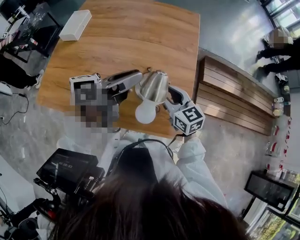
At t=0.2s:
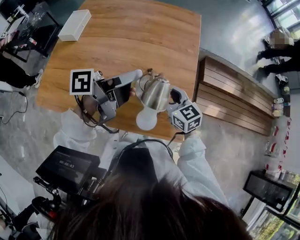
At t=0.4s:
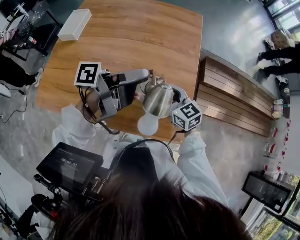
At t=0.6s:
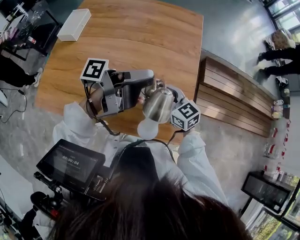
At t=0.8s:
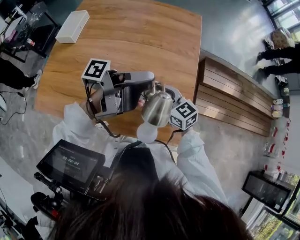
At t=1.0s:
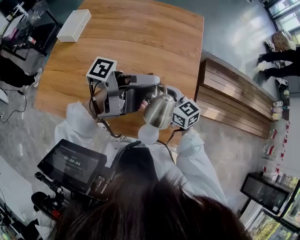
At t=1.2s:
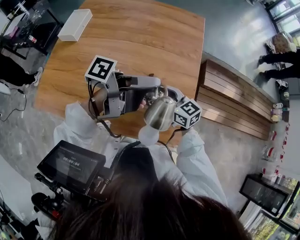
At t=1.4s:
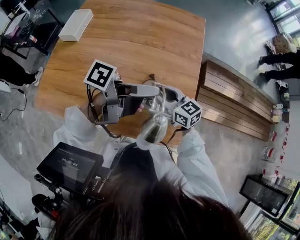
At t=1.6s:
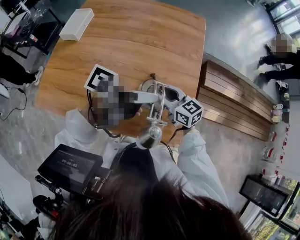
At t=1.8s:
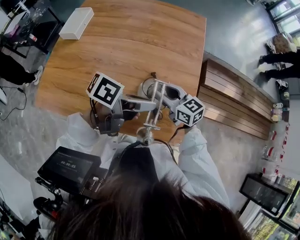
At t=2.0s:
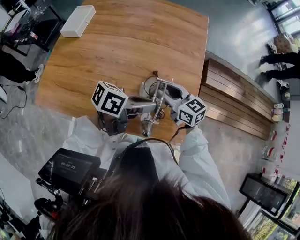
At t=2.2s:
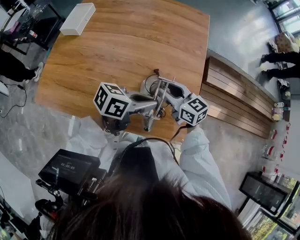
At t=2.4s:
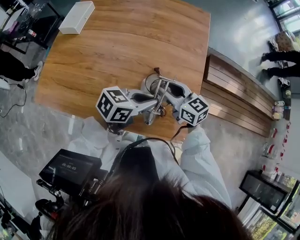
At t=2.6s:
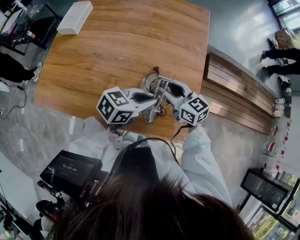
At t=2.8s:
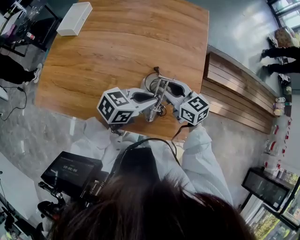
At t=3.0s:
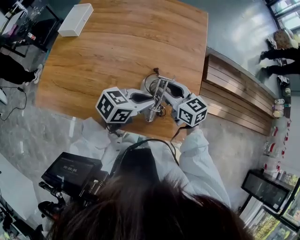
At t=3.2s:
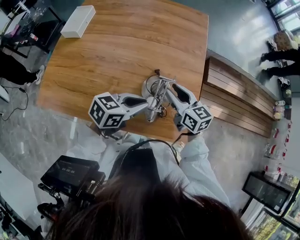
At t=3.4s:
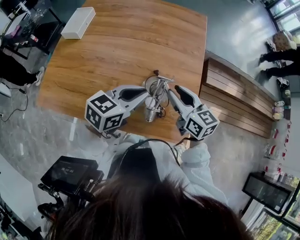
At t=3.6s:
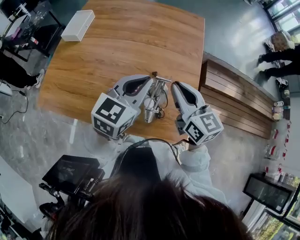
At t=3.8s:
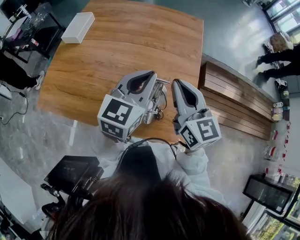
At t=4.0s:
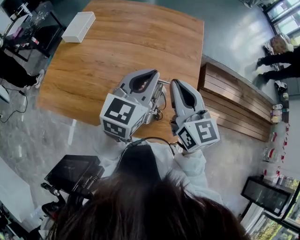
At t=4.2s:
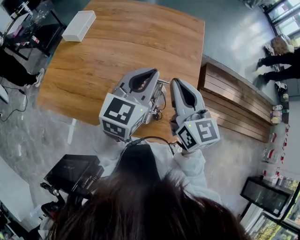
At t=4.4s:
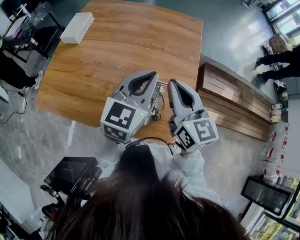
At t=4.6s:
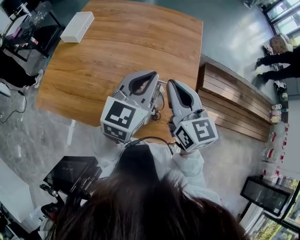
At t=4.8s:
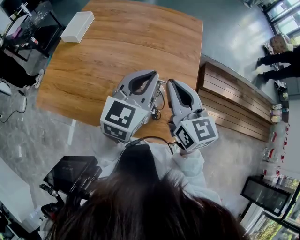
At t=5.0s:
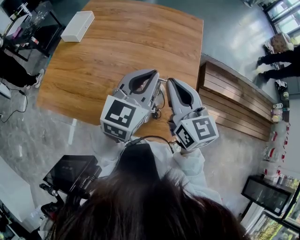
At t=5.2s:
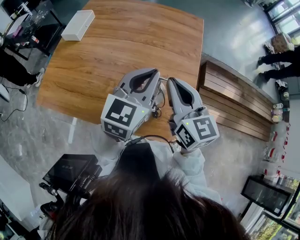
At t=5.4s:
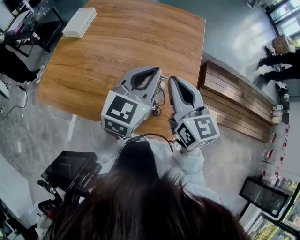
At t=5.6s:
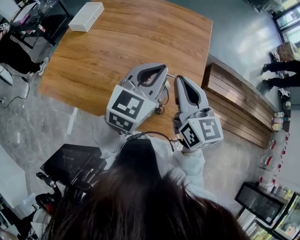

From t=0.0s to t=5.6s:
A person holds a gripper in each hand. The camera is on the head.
From t=0.0s to t=1.4s: The left gripper shifts by roughly 5 cm, and swivels roughly 40 degrees, while the right gripper ends up approximately 5 cm from where it was.
From t=1.4s to t=2.8s: The left gripper shifts approximately 15 cm downward, rolls clockwise, seen from behind, by some 50 degrees, and closes.
From t=2.8s to t=4.2s: The grippers both shift upward by roughly 15 cm. The right gripper swivels some 30 degrees, and closes up, while the left gripper turns by some 40 degrees.
From t=4.2s to t=5.6s: There are only small adjustments of the grippers.

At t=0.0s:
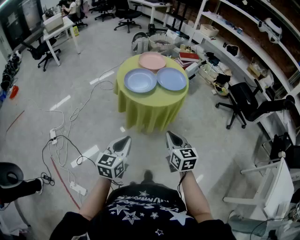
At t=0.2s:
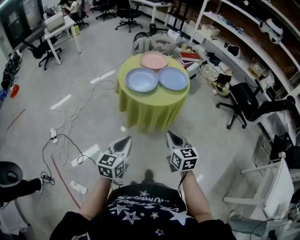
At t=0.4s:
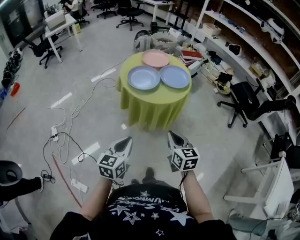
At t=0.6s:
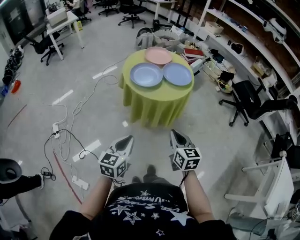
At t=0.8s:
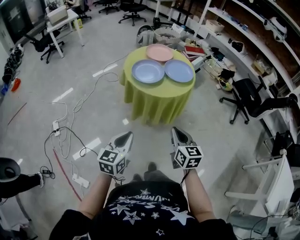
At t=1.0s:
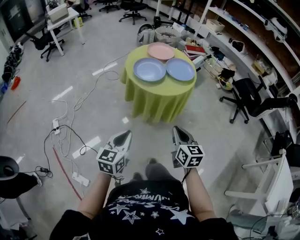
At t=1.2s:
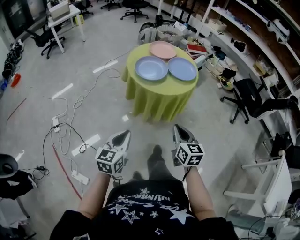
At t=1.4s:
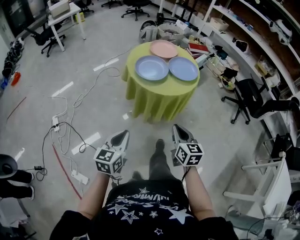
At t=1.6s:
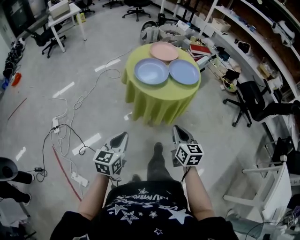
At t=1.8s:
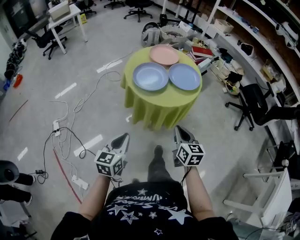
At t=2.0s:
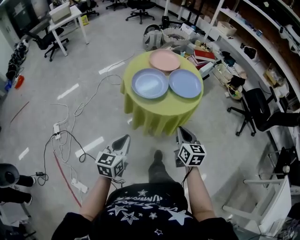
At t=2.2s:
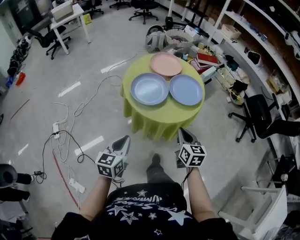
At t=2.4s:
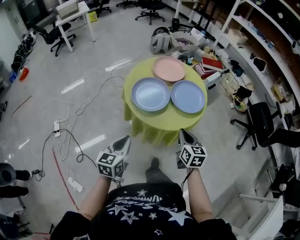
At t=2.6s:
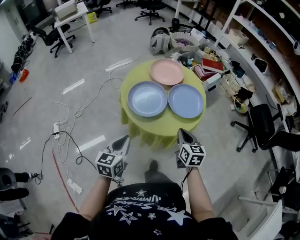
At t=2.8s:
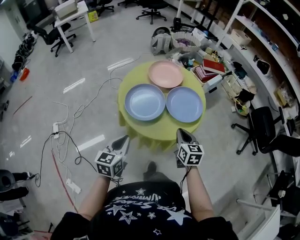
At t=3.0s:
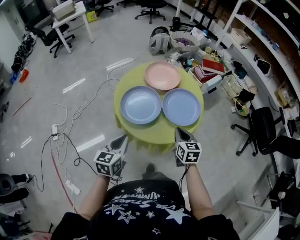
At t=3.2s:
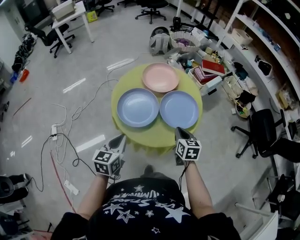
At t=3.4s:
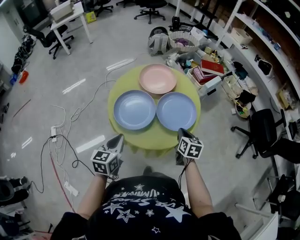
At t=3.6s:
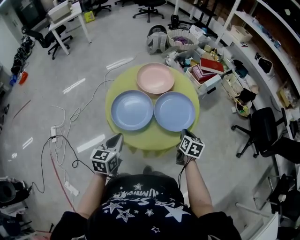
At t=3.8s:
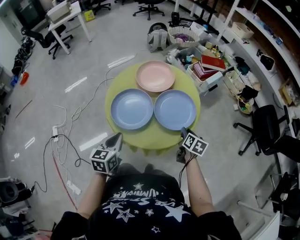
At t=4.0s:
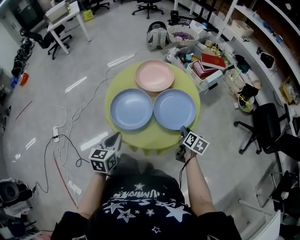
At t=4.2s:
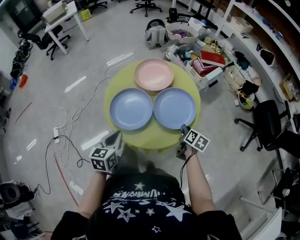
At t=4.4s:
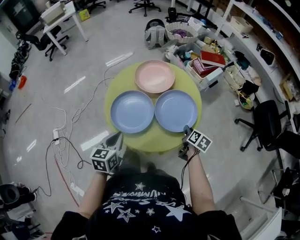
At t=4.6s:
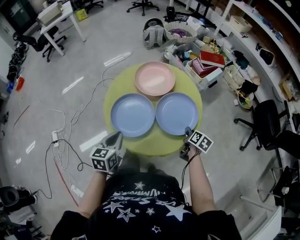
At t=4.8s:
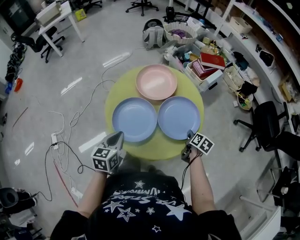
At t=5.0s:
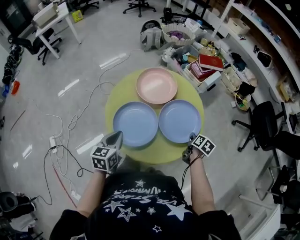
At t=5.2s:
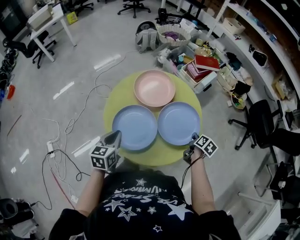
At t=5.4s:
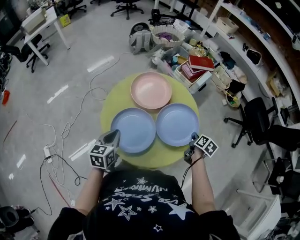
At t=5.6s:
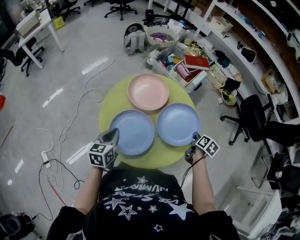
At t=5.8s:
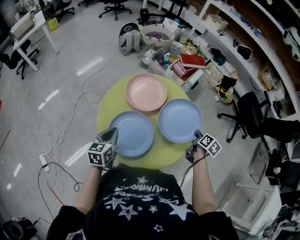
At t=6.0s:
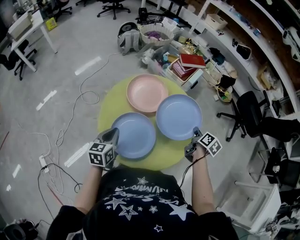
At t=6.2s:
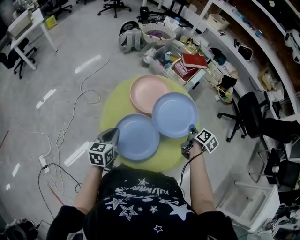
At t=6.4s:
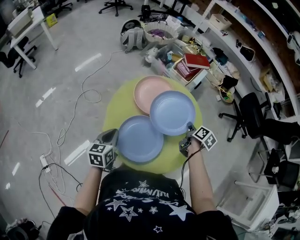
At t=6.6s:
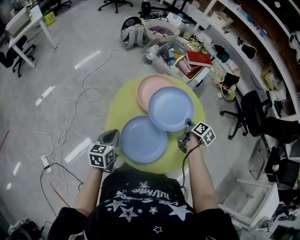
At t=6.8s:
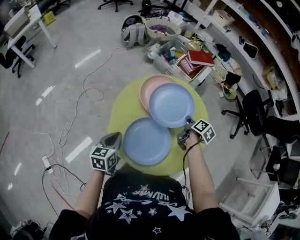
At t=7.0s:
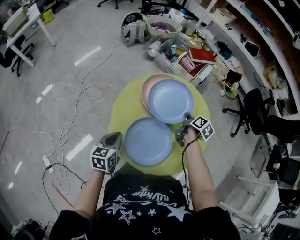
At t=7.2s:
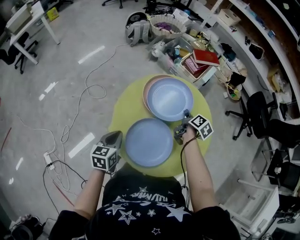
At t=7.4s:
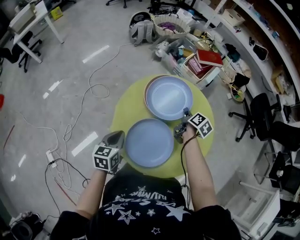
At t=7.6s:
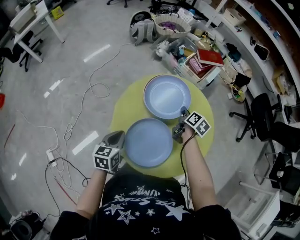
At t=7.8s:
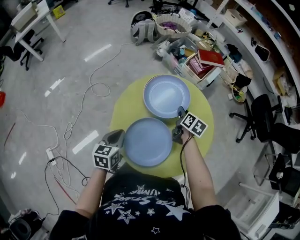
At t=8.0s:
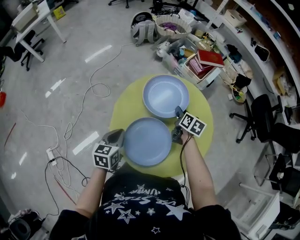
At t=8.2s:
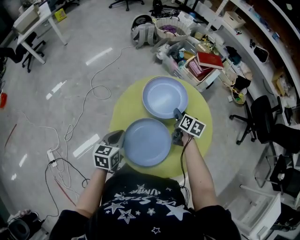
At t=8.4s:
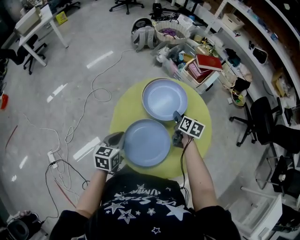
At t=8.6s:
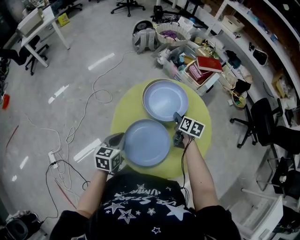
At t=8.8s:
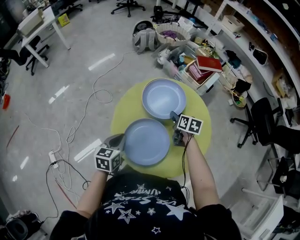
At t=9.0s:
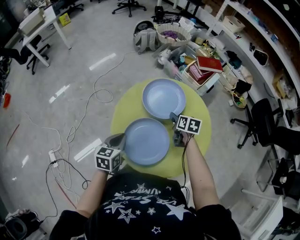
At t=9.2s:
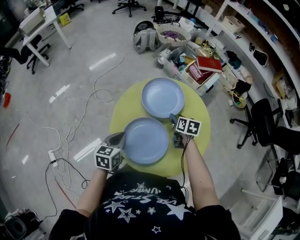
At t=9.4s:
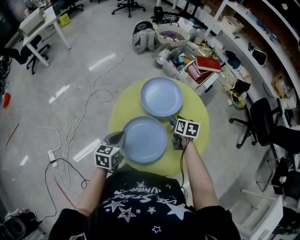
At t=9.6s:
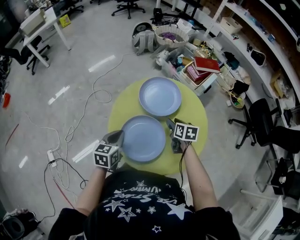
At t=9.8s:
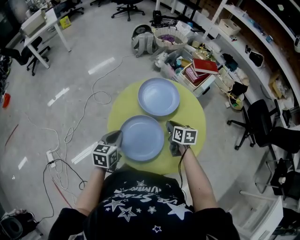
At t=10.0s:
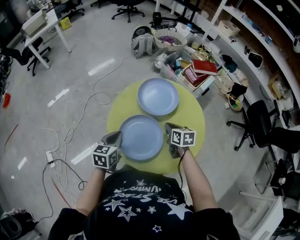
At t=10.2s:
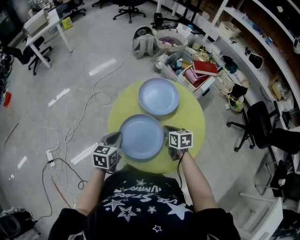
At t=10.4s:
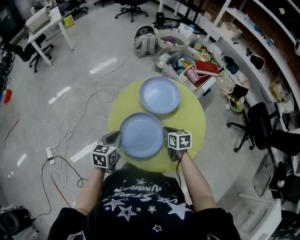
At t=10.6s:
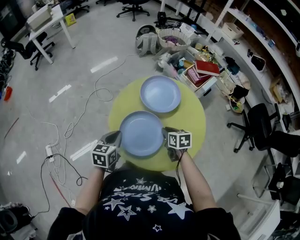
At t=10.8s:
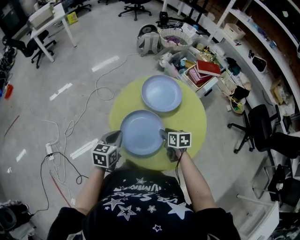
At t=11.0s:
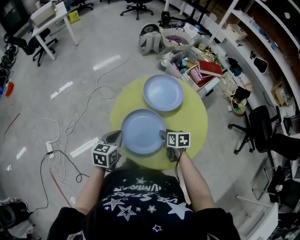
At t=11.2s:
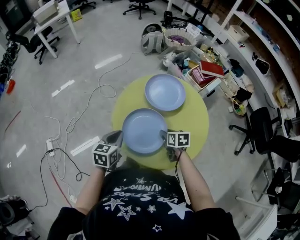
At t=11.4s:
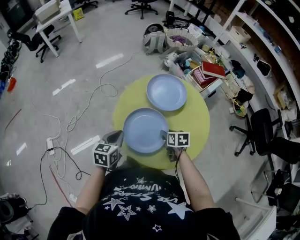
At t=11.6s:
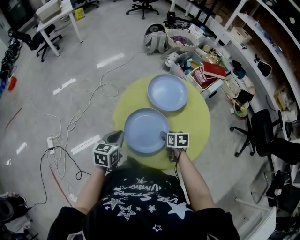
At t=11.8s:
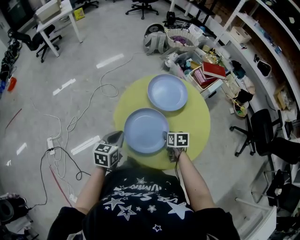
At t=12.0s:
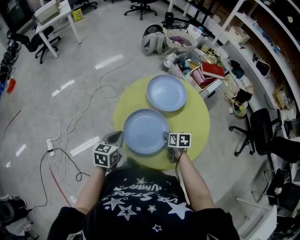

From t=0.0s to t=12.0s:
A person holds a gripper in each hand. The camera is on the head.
From t=0.0s to t=1.6s: The left gripper shifts about 5 cm to the left.
From t=1.6s to t=3.0s: The grippers both shift forward by about 30 cm.
From t=3.0s to t=4.4s: The left gripper travels forward by about 10 cm, while the right gripper travels to the right, downward and forward by some 20 cm, changes its angle by some 40 degrees, and opens.
From t=4.4s to t=6.0s: The left gripper is displaced forward and to the left by about 15 cm. The right gripper shifts some 10 cm upward and forward, swivels some 20 degrees, and closes.
From t=6.0s to t=7.6s: The right gripper goes roughly 20 cm to the left and forward. Meanwhile the left gripper heads to the left, covering about 5 cm.
From t=7.6s to t=9.0s: The right gripper changes its angle by about 30 degrees, and opens its fingers.
From t=9.0s to t=10.4s: The right gripper shifts some 10 cm backward, changes its angle by roughly 20 degrees, and closes its fingers.
From t=10.4s to t=12.0s: The right gripper moves about 5 cm, and opens and closes again.

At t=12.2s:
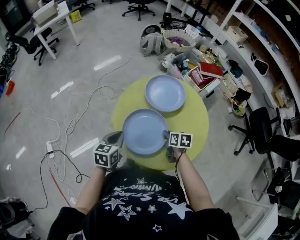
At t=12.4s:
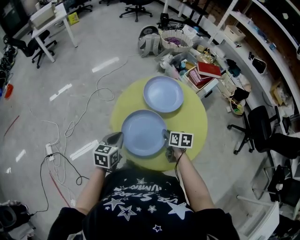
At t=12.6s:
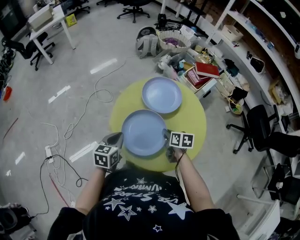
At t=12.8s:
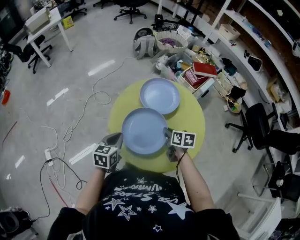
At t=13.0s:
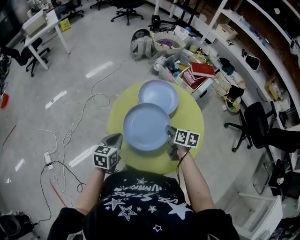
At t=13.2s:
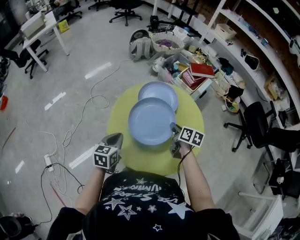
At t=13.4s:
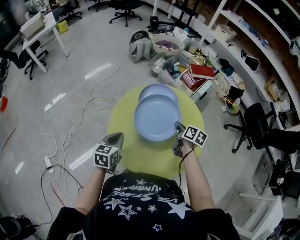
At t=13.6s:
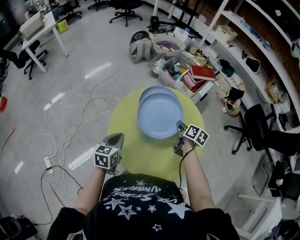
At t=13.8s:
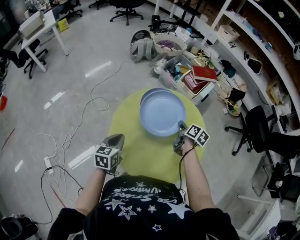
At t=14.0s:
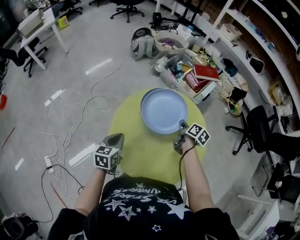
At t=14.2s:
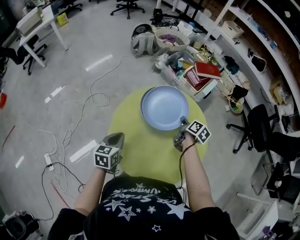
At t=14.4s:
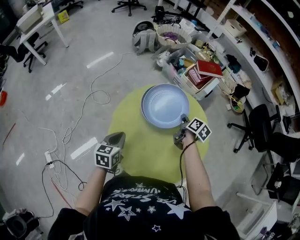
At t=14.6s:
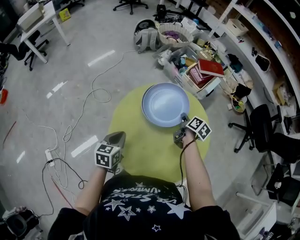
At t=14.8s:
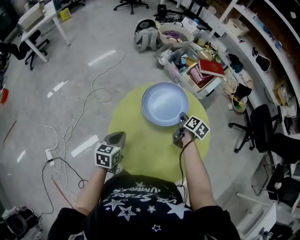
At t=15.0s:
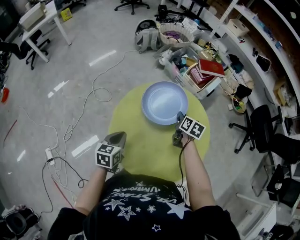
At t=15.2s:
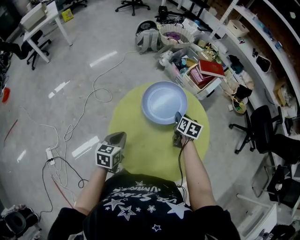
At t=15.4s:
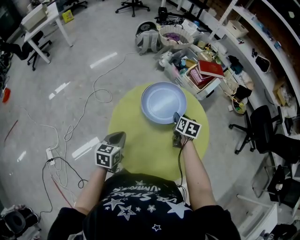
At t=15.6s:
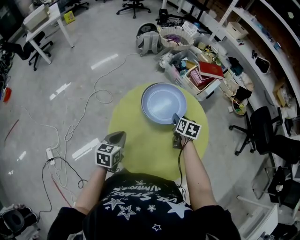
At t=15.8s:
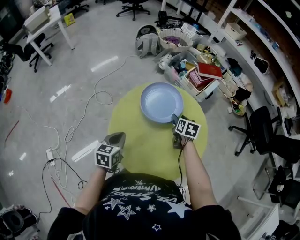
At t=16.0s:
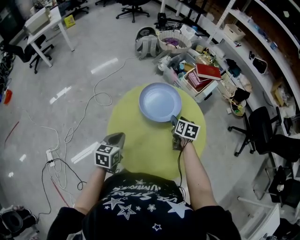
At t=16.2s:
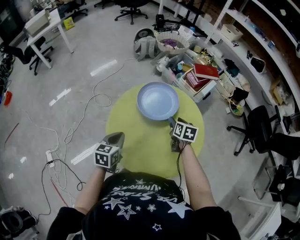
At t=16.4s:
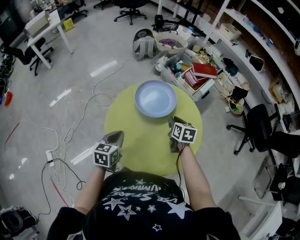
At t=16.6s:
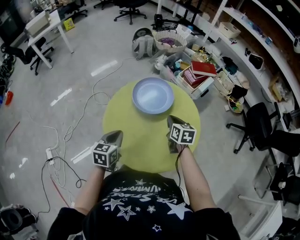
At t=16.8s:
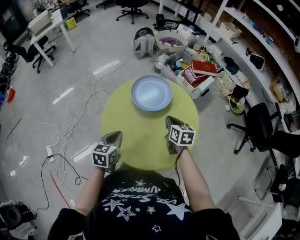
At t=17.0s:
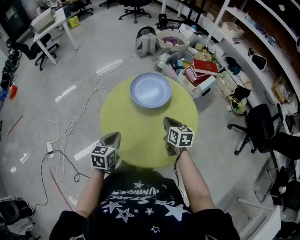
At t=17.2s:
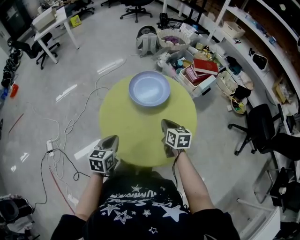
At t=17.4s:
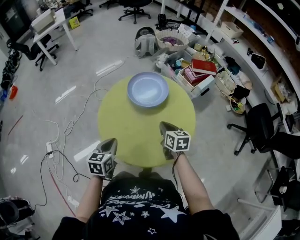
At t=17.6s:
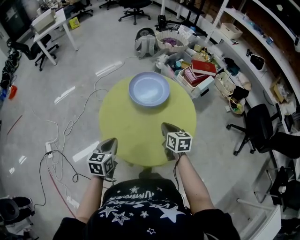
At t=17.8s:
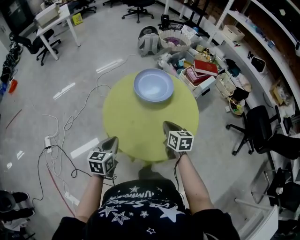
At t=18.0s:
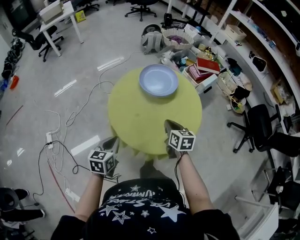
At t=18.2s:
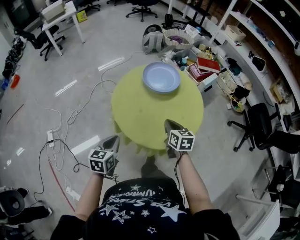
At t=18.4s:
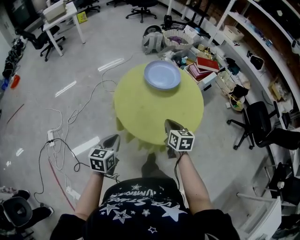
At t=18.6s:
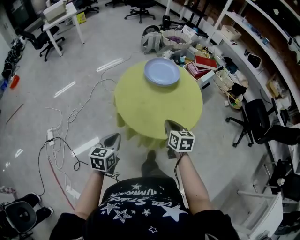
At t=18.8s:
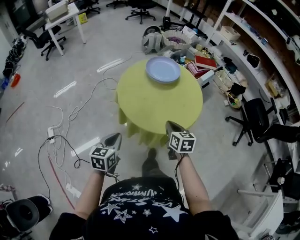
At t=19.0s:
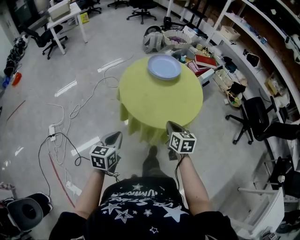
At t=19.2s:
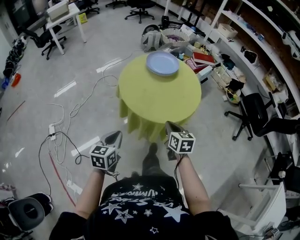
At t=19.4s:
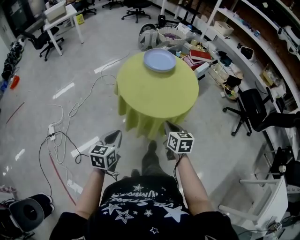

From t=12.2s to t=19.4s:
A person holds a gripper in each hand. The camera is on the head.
From t=12.2s to t=13.6s: The left gripper shifts approximately 10 cm forward, while the right gripper shifts roughly 15 cm forward, to the right and upward, and swivels roughly 30 degrees.
From t=13.6s to t=15.0s: The right gripper shifts approximately 5 cm forward.
From t=15.0s to t=16.6s: The right gripper heads backward and upward, covering about 10 cm, turns by about 20 degrees, and opens, then closes once more, while the left gripper moves backward, approximately 5 cm.
From t=16.6s to t=18.0s: The grippers both shift backward by approximately 15 cm.
From t=18.0s to t=19.4s: The two grippers go some 20 cm backward.
